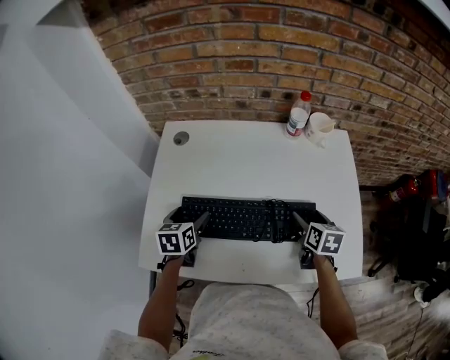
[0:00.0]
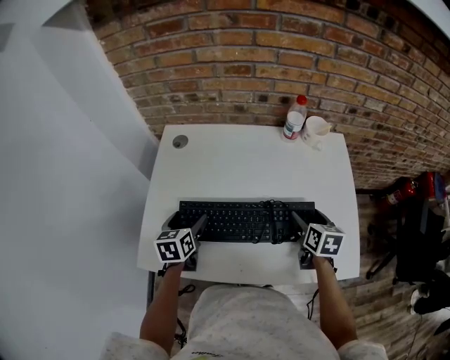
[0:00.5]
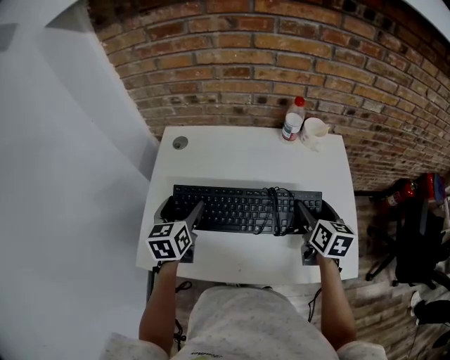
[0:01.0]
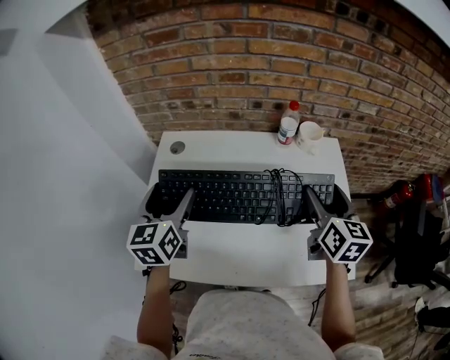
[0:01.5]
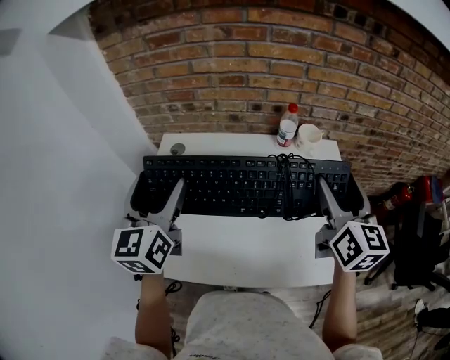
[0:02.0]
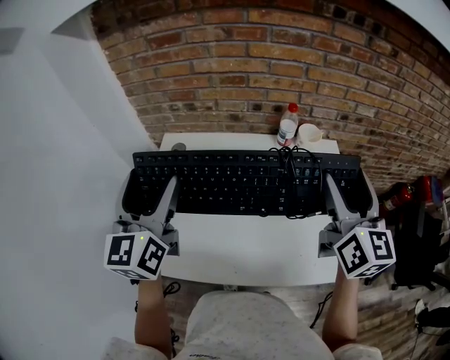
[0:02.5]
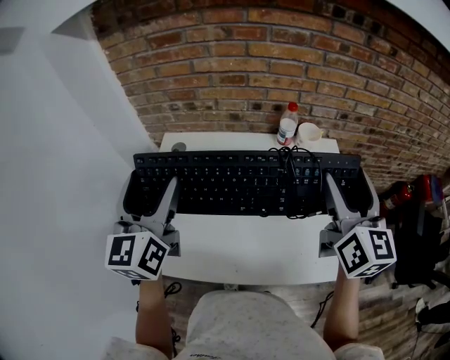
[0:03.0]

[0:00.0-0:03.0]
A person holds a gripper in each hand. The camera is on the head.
0:00.0 to 0:01.5: Both grippers travel together upward, roughly 20 cm. The right gripper swivels about 30 degrees; the left gripper turns by some 30 degrees.
0:01.5 to 0:03.0: Both grippers travel together upward, roughly 10 cm.

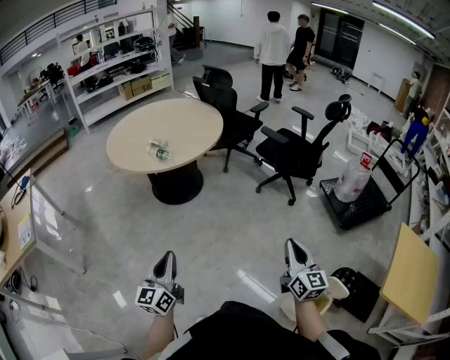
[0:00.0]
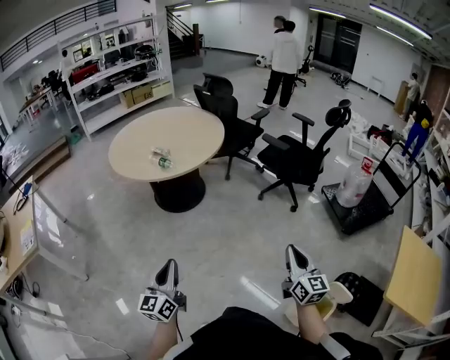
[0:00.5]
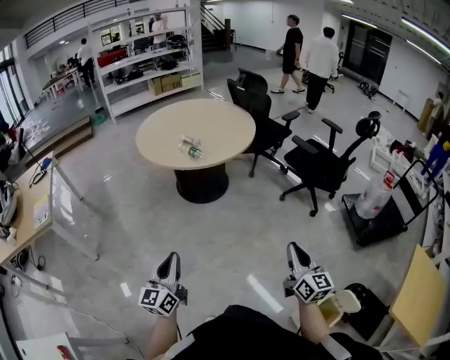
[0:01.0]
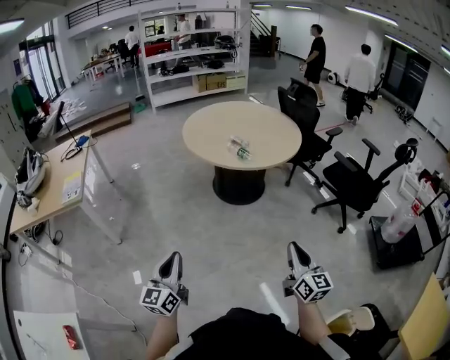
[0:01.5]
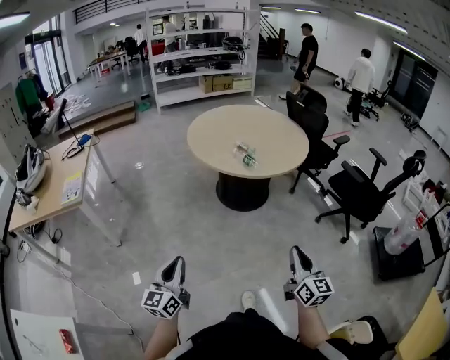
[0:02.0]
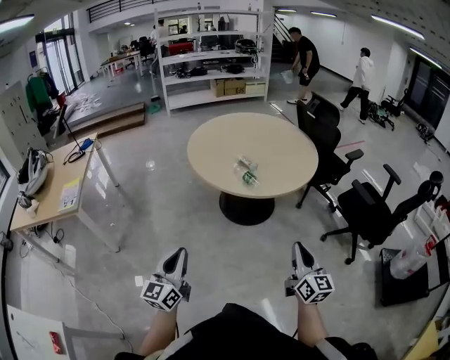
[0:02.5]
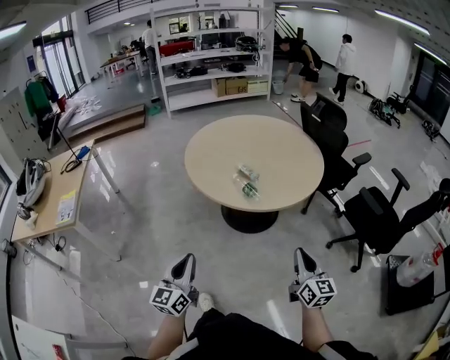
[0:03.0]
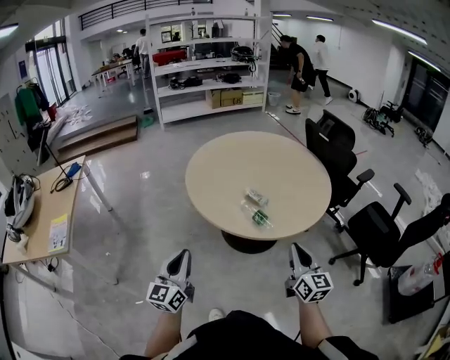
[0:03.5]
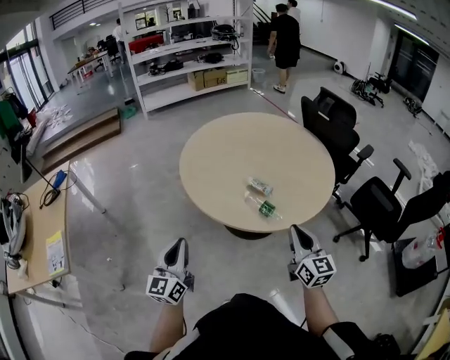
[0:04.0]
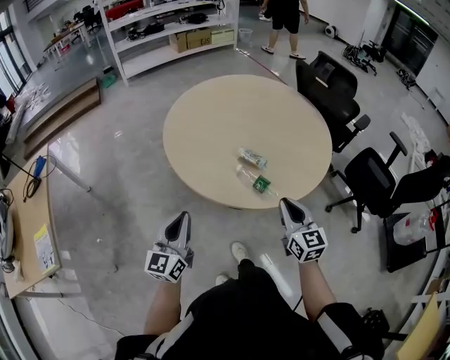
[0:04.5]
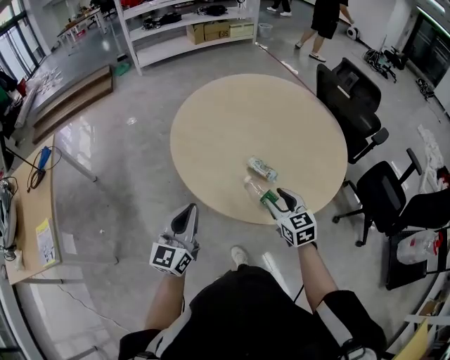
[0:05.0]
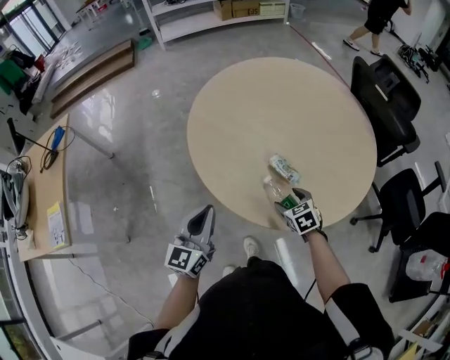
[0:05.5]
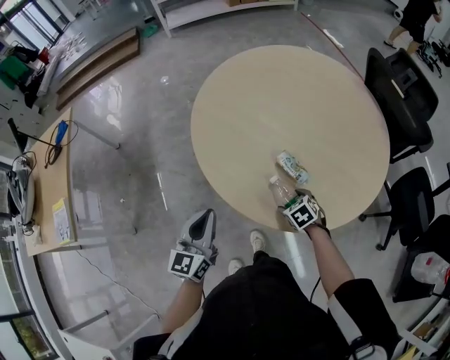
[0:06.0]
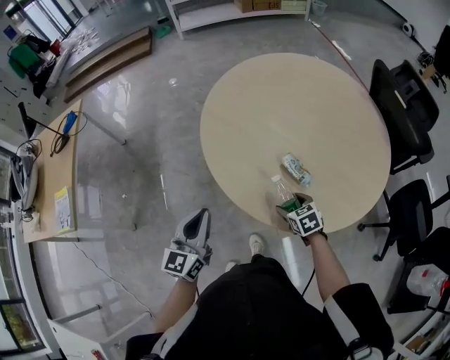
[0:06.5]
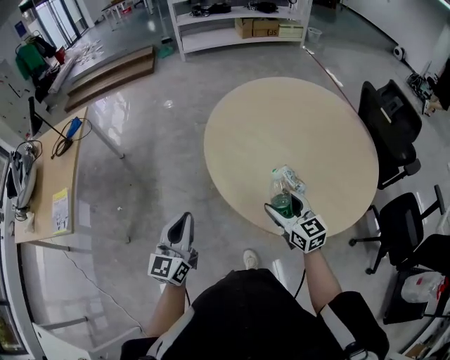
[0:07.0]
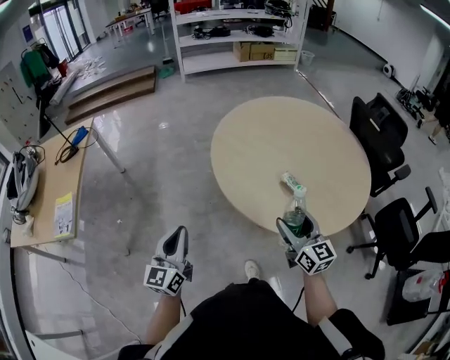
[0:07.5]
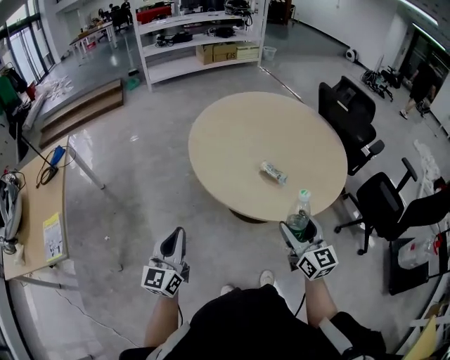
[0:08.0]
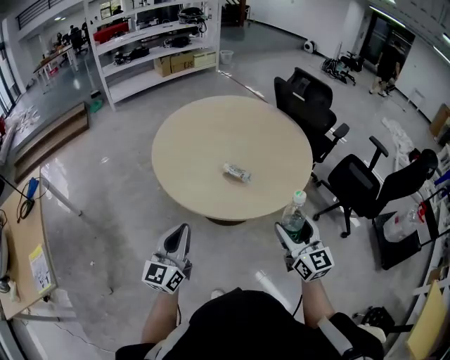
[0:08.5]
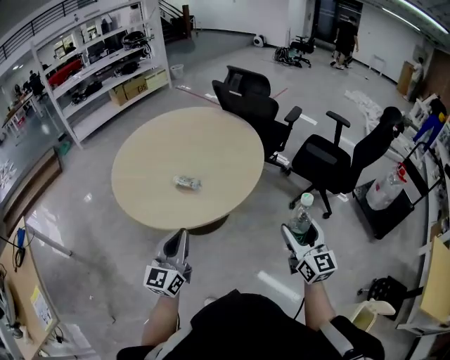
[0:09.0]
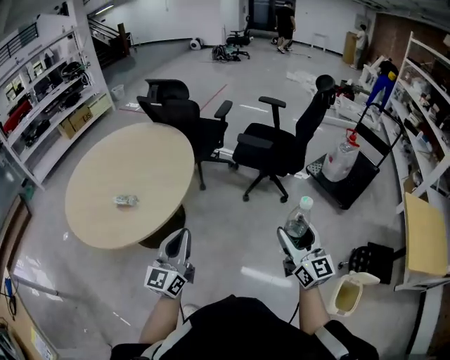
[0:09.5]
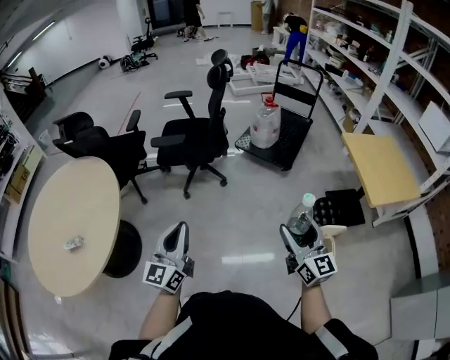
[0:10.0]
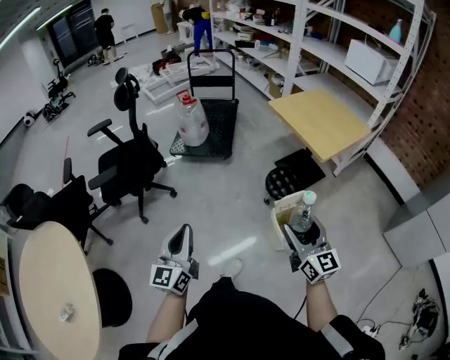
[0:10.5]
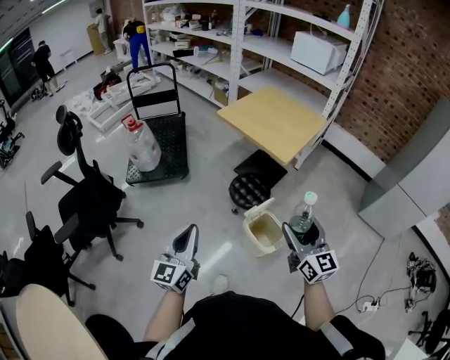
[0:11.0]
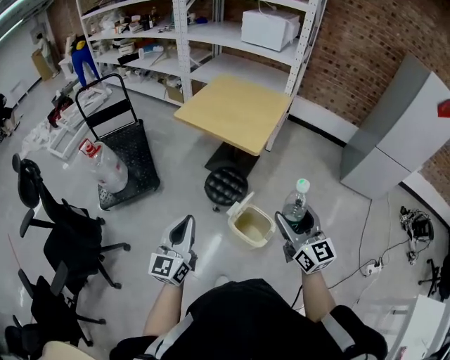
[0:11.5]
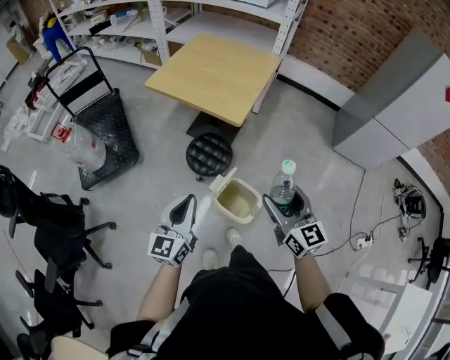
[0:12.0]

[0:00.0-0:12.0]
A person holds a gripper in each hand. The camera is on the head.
0:00.0 to 0:02.0: The grippers both shift to the left by roughly 25 cm. The right gripper changes its angle by approximately 20 degrees.
0:02.0 to 0:04.0: The two grippers travel together, forward, some 50 cm.
0:04.0 to 0:06.0: The left gripper moves forward, downward and to the right, some 20 cm, while the right gripper is displaced downward and forward by roughly 35 cm, tilts its fingers about 60 degrees downward, and opens up.
0:06.0 to 0:08.0: The left gripper travels to the left, backward and upward by approximately 20 cm, while the right gripper shifts roughly 35 cm upward and backward, and points its fingers roughly 60 degrees further upward.
0:08.0 to 0:10.0: The two grippers travel together, approximately 70 cm. The left gripper rotates roughly 70 degrees. Meanwhile the right gripper turns by approximately 70 degrees.
0:10.0 to 0:12.0: The left gripper shifts by approximately 50 cm, and swivels approximately 70 degrees. The right gripper changes place by roughly 35 cm, and rotates about 60 degrees.

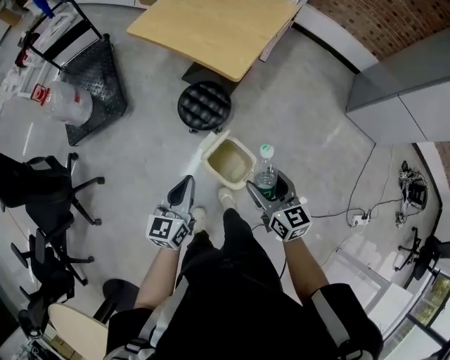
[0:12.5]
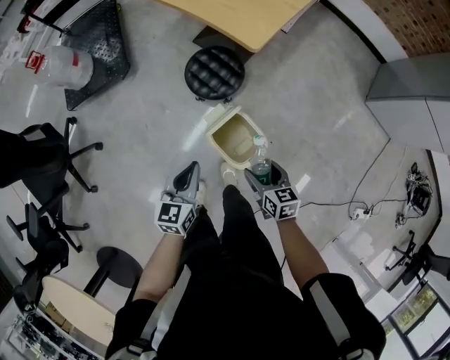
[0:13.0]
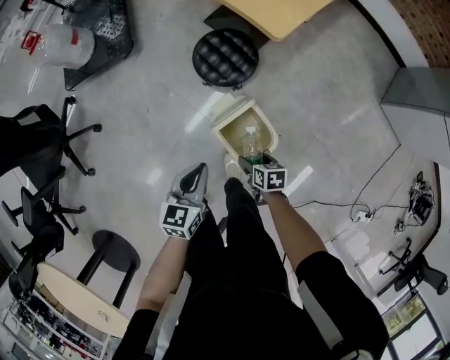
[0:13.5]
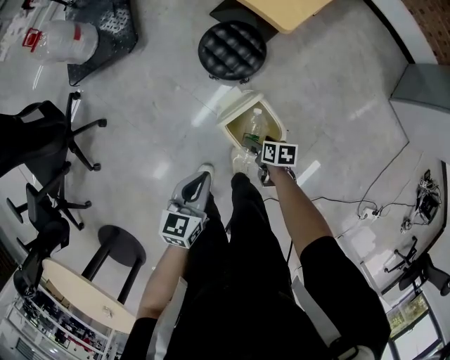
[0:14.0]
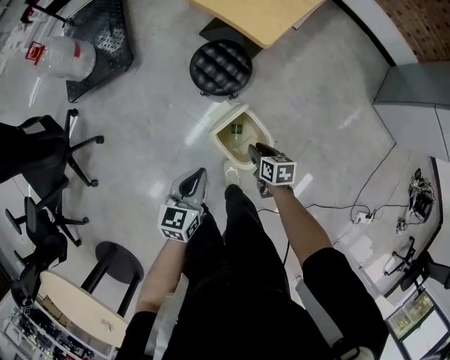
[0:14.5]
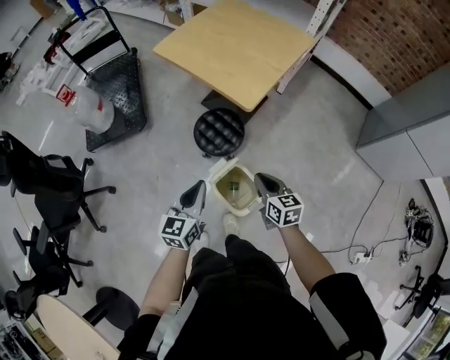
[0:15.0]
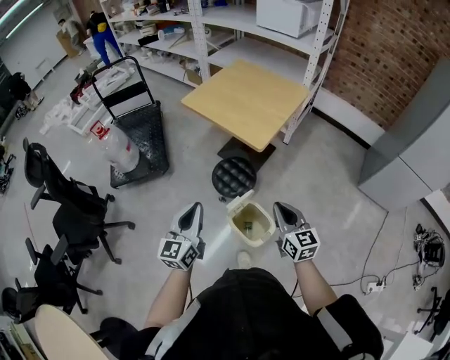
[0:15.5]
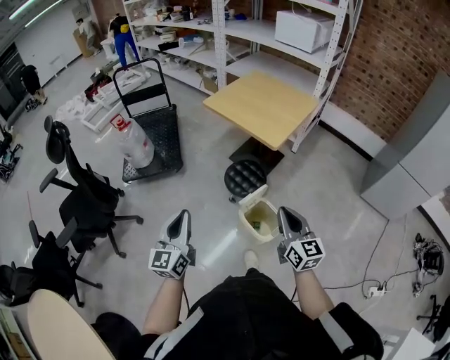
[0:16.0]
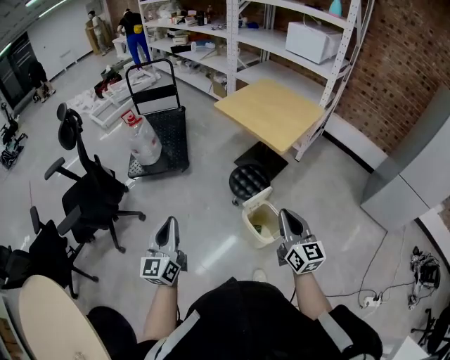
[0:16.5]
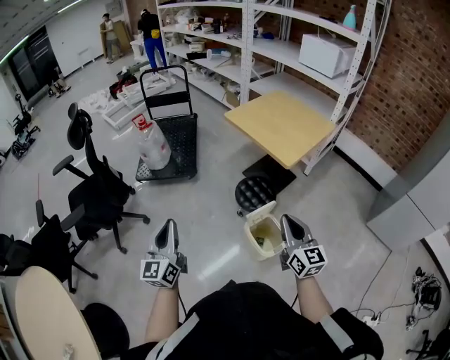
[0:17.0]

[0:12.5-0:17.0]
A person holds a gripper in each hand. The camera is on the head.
0:12.5 to 0:14.5: The right gripper is displaced downward by approximately 25 cm, turns by roughly 40 degrees, and closes up. Meanwhile the left gripper is displaced downward by approximately 10 cm.
0:14.5 to 0:17.0: The left gripper goes about 40 cm upward and to the left, and tips its fingers upward by approximately 40 degrees, while the right gripper moves upward, about 40 cm, and tips its fingers upward by approximately 50 degrees.

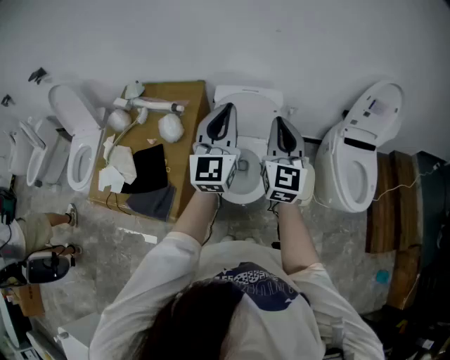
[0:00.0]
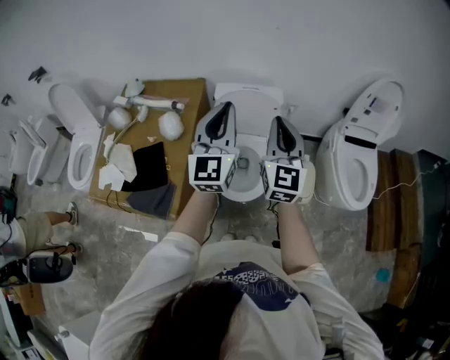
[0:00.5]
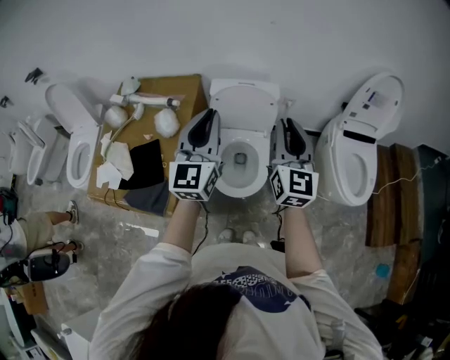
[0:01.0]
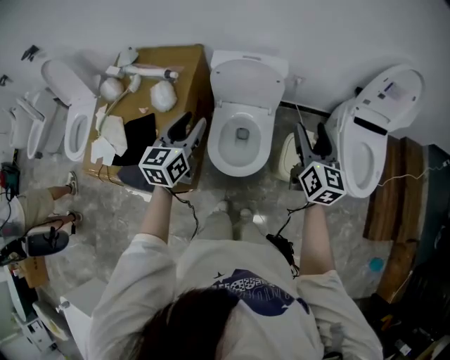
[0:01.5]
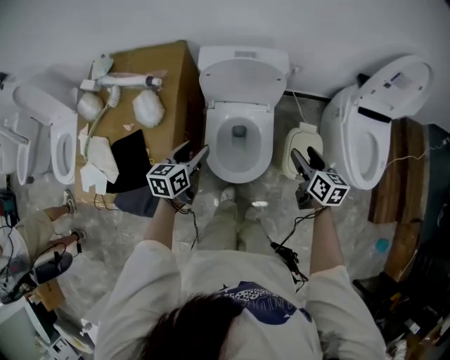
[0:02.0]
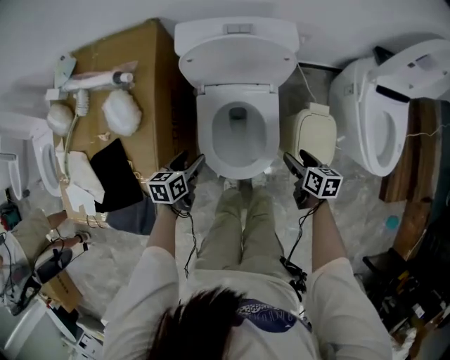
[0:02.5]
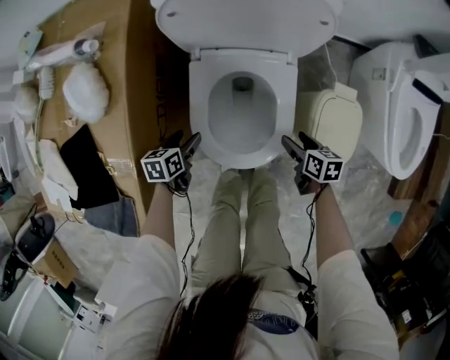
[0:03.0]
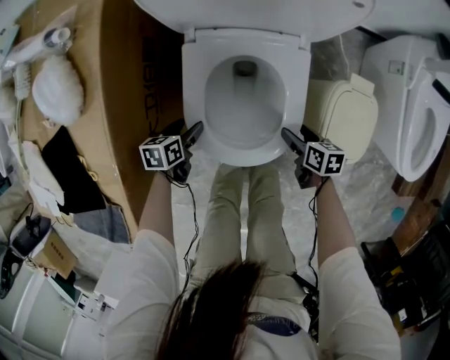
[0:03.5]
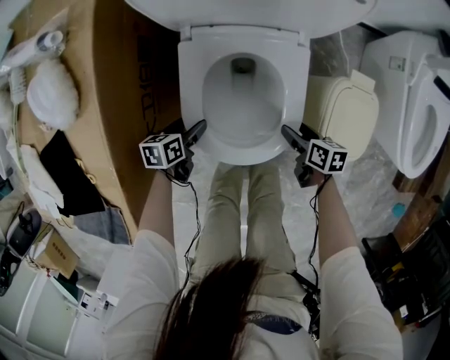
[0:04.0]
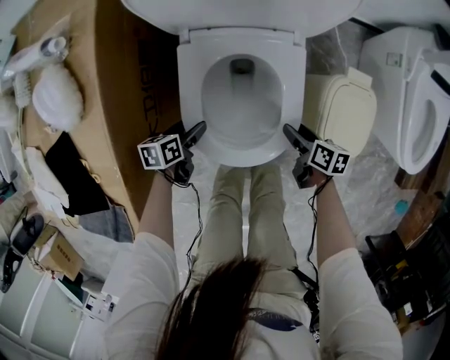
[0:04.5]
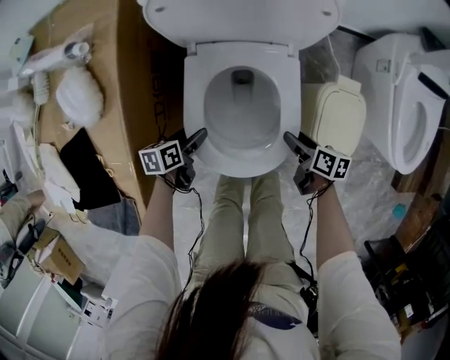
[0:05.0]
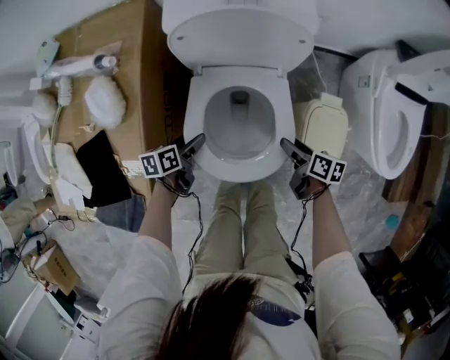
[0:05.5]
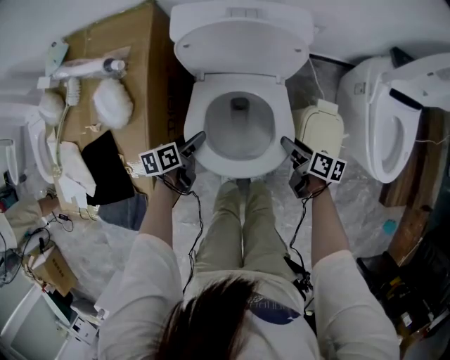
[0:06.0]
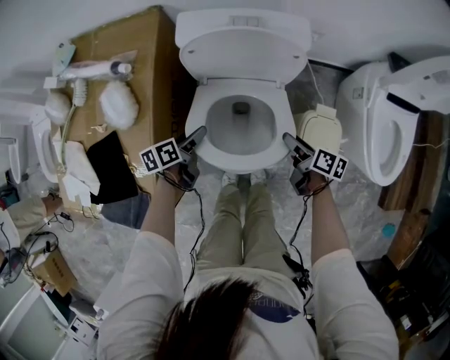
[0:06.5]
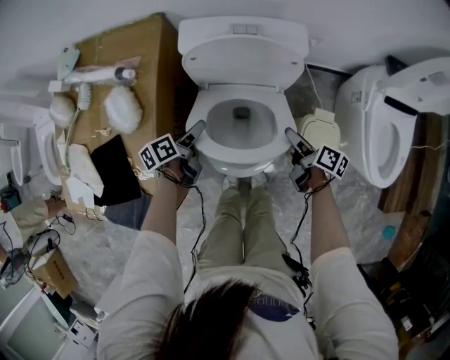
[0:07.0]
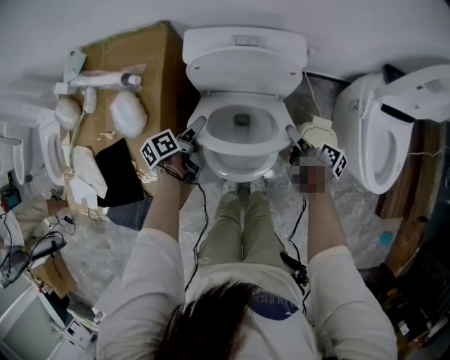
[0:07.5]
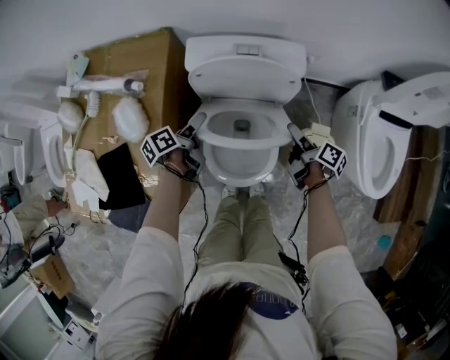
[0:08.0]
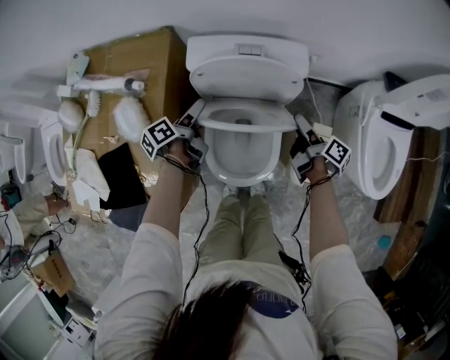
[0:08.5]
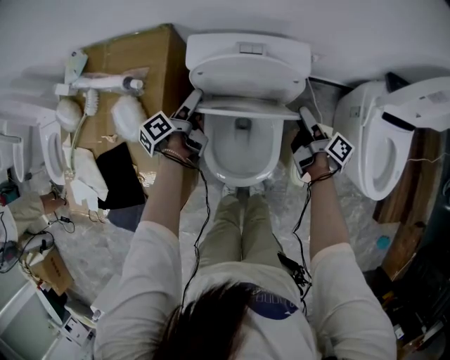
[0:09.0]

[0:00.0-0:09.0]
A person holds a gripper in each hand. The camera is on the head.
0:00.0 to 0:02.0: Both grippers move downward, roughly 30 cm. The right gripper tips its fingers downward by some 40 degrees, and opens its fingers. The left gripper points its fingers about 50 degrees further downward, and opens.
0:02.0 to 0:04.5: The two grippers go roughly 40 cm downward. The right gripper rotates roughly 30 degrees. The left gripper turns by approximately 30 degrees.
0:04.5 to 0:07.0: Both grippers move upward and forward, approximately 25 cm. The right gripper turns by roughly 20 degrees, while the left gripper turns by about 30 degrees.
0:07.0 to 0:09.0: The grippers both shift forward and upward by some 15 cm. The left gripper changes its angle by roughly 20 degrees; the right gripper rotates about 20 degrees.
